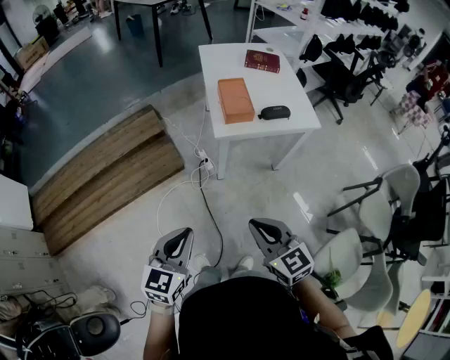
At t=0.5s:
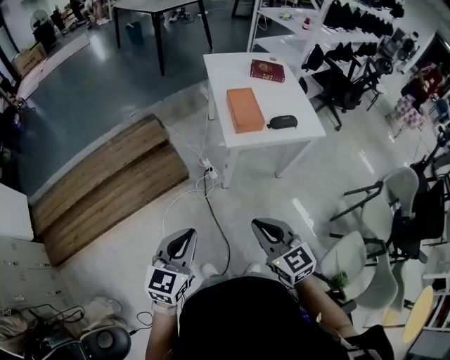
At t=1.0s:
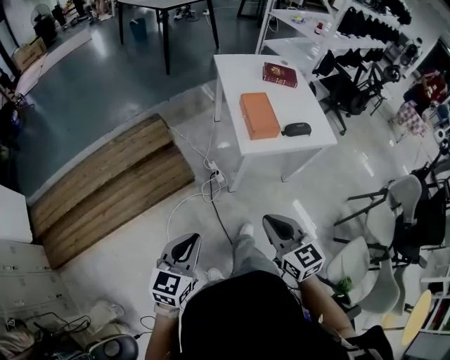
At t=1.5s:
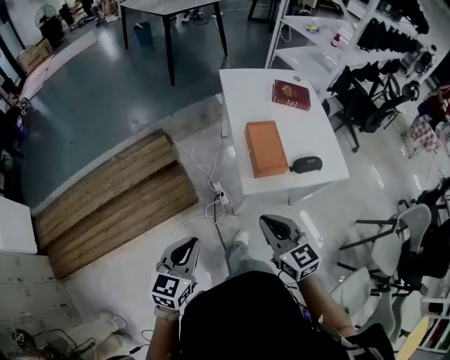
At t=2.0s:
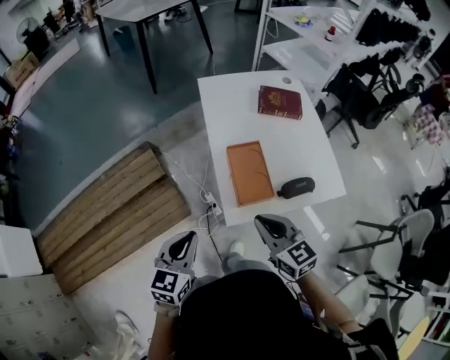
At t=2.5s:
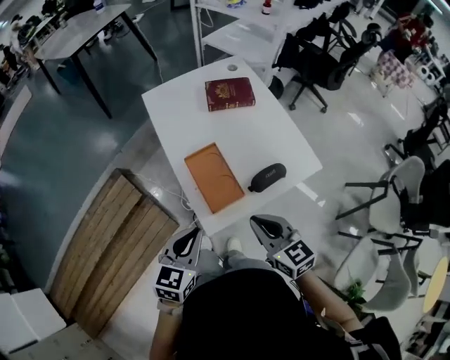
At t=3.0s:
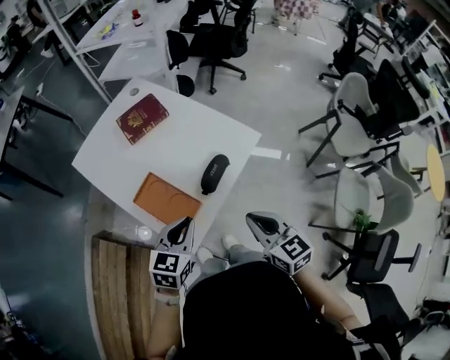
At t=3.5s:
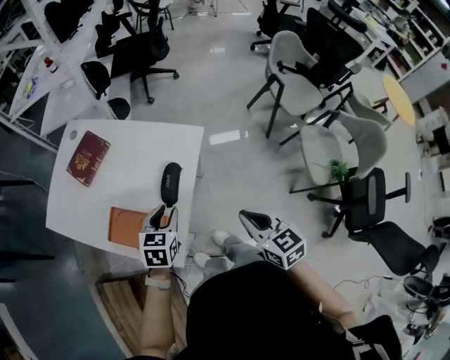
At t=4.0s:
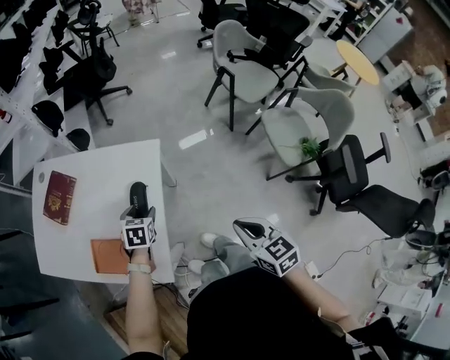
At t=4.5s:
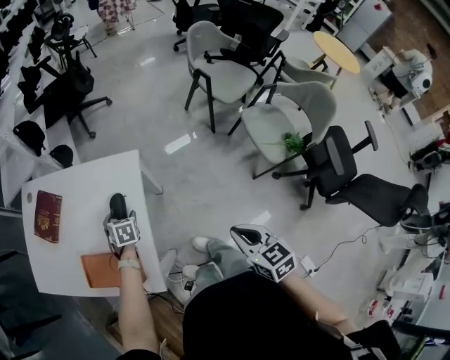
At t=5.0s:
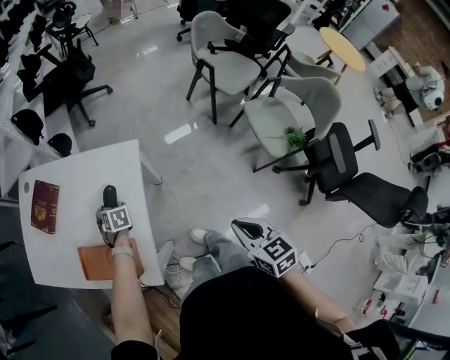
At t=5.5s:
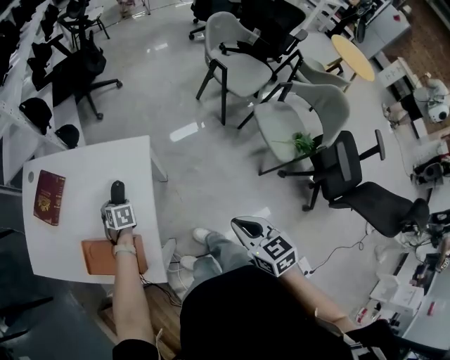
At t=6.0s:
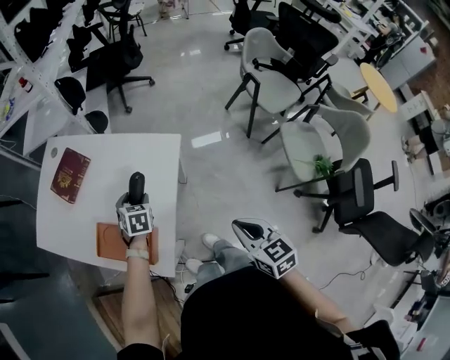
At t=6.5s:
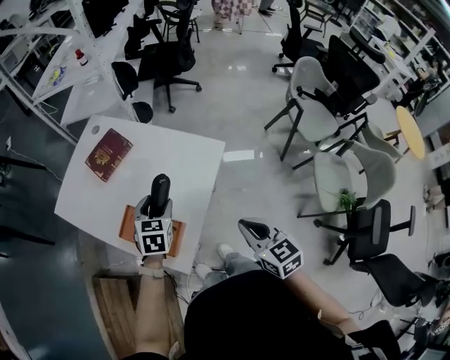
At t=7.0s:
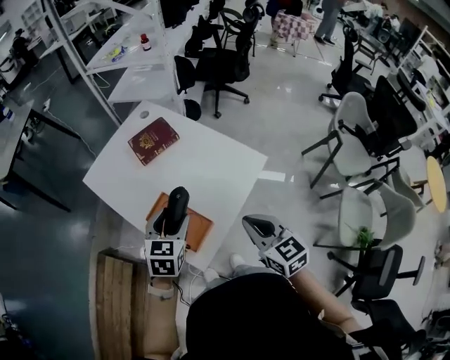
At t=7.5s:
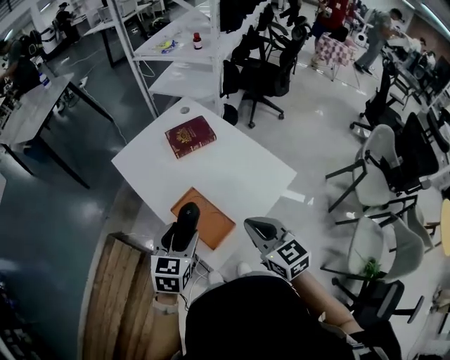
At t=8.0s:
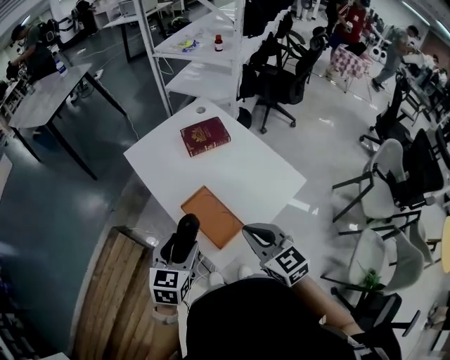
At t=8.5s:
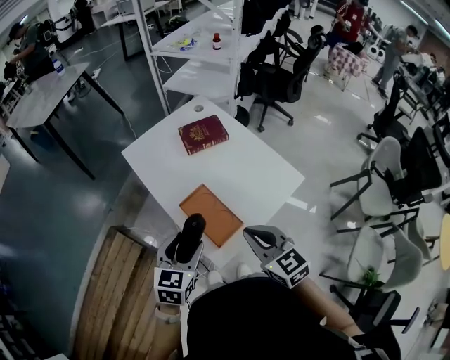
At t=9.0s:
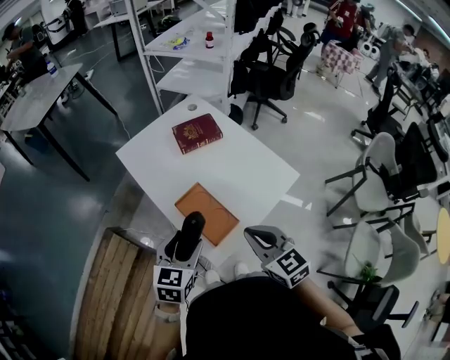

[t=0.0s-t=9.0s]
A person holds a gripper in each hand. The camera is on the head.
t=0.0s to t=2.0s: Both grippers are carried forward, some 40 cm.
t=2.0s to t=4.5s: The right gripper moves about 35 cm, and swivels some 90 degrees, while the left gripper shifts by about 50 cm, angles its fingers downward, by approximately 30 degrees, and opens up.
t=4.5s to t=7.0s: The left gripper travels upward, to the left and backward by approximately 30 cm, and swivels some 30 degrees. The right gripper travels to the left and forward by roughly 30 cm, and rotates approximately 40 degrees.
t=7.0s to t=9.0s: The right gripper is displaced to the left by about 10 cm. Meanwhile the left gripper moves to the left and backward, some 15 cm.

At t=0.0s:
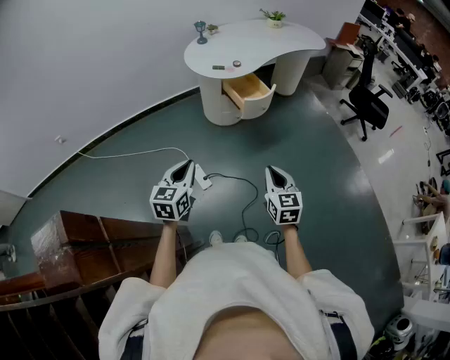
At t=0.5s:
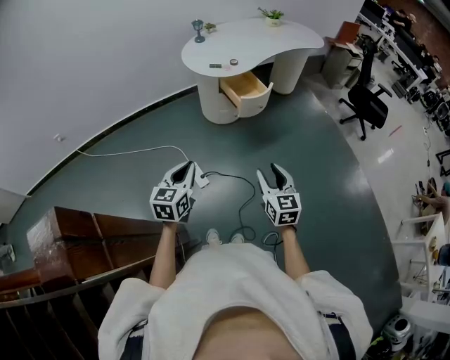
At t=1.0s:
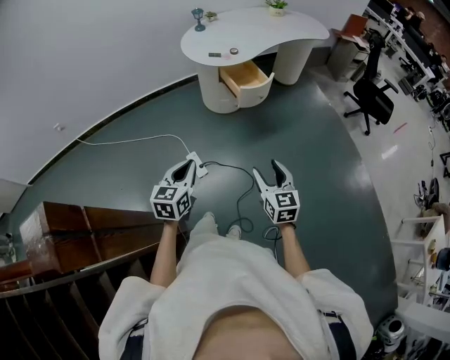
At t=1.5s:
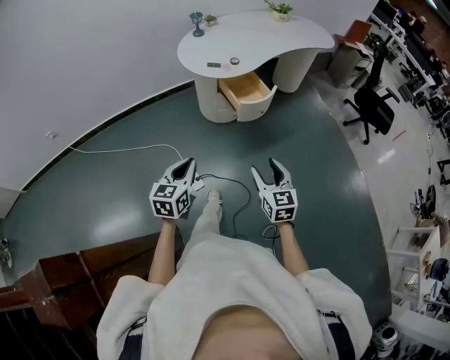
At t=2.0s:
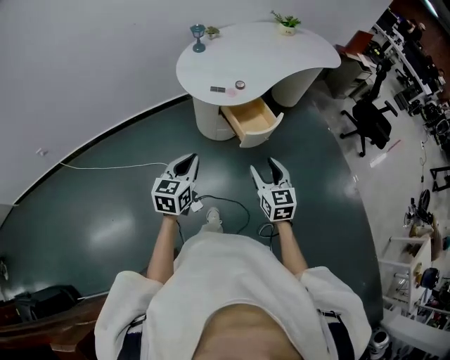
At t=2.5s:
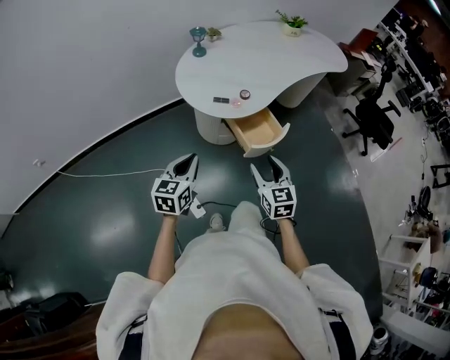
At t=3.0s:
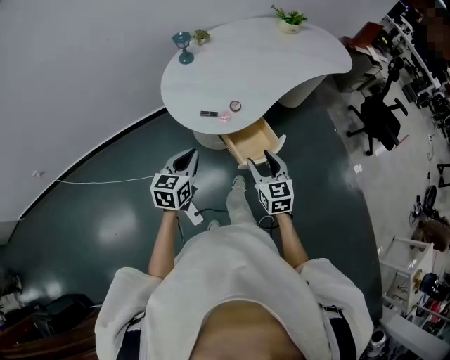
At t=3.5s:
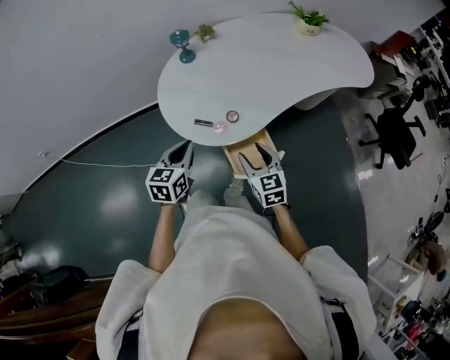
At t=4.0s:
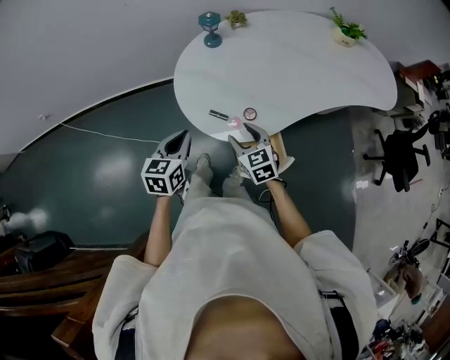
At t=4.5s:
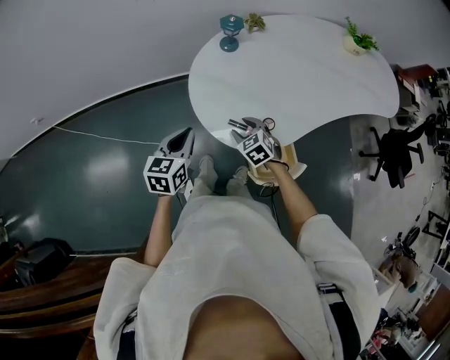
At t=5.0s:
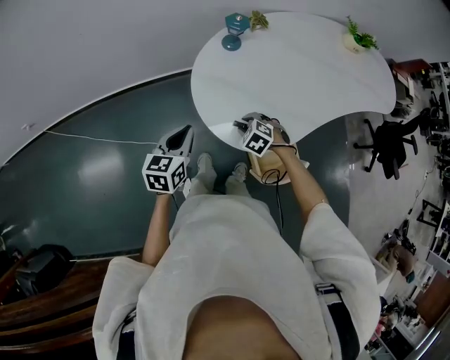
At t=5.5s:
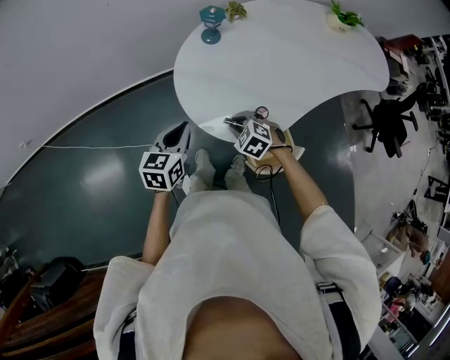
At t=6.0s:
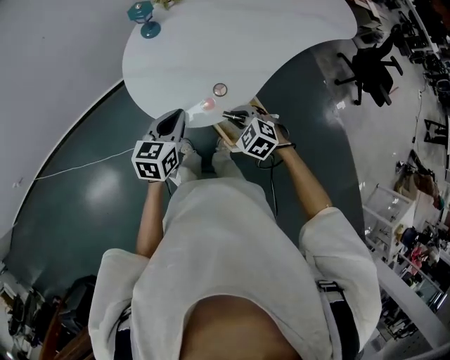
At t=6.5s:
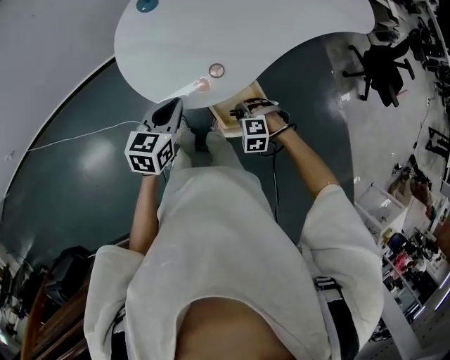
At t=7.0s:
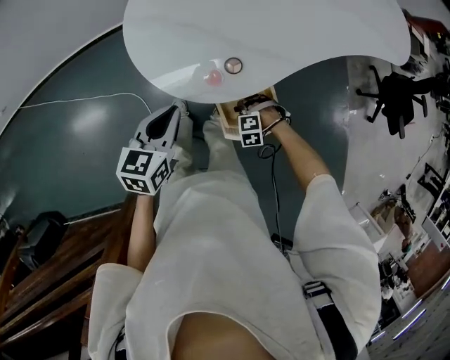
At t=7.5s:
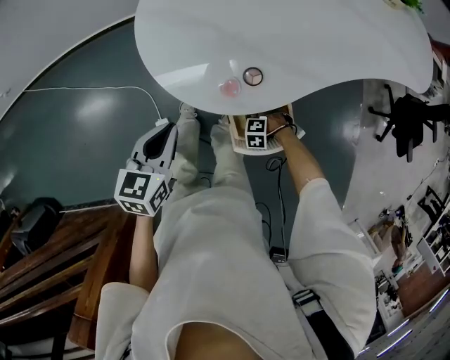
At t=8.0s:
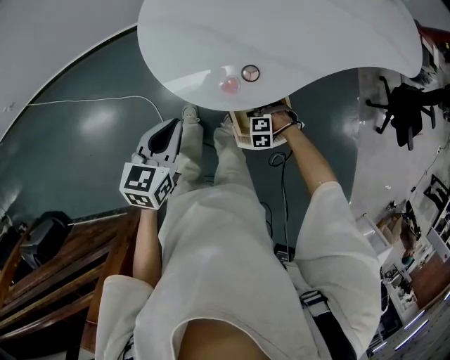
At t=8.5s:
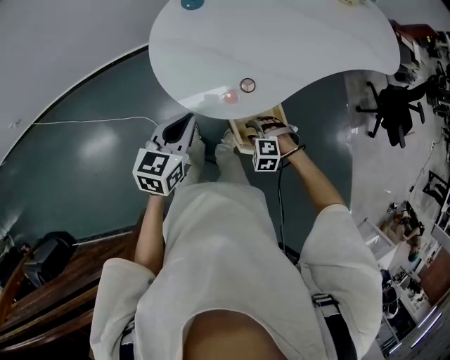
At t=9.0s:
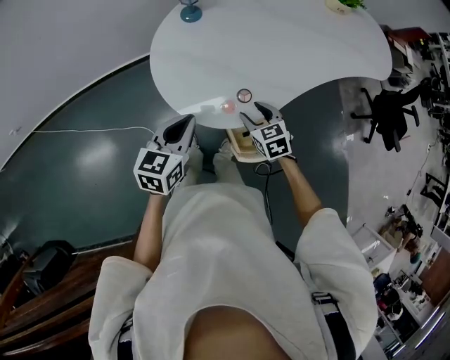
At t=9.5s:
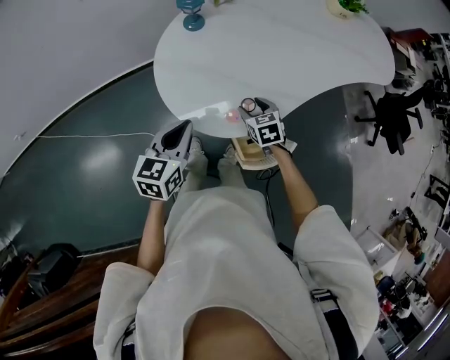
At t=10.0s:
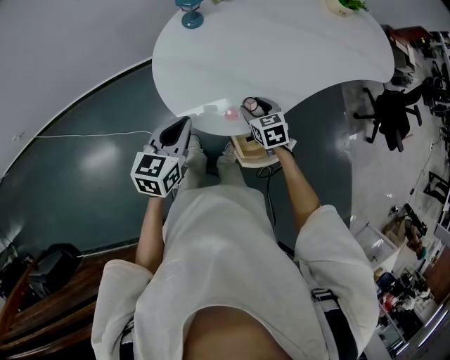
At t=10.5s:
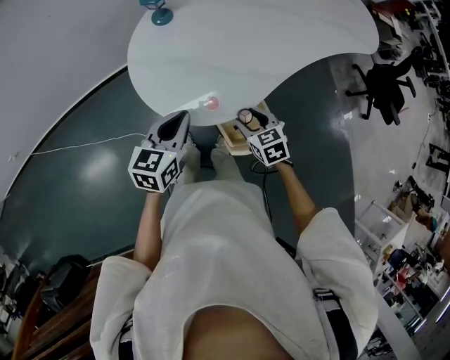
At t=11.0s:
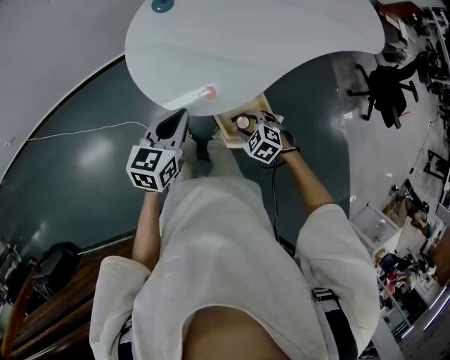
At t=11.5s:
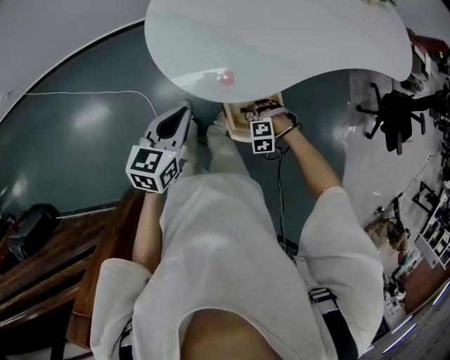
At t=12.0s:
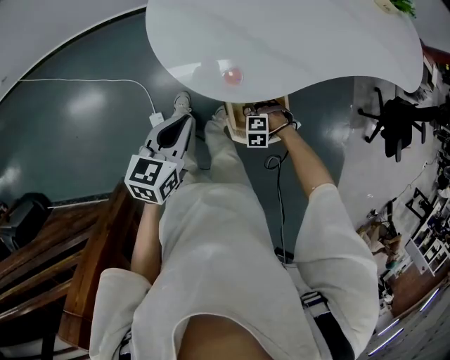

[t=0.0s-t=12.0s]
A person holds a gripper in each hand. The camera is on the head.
t=0.0s to t=2.0s: Both grippers move forward, some 35 cm. The right gripper opens.
t=2.0s to t=4.0s: The right gripper shifts by approximately 40 cm, and turns by some 30 degrees. Meanwhile the left gripper ends up about 35 cm from where it was, and rotates some 20 degrees.
t=4.0s to t=6.0s: The left gripper is displaced forward by some 5 cm, reaches some 10 cm to the left, then returns, and rotates some 20 degrees. The right gripper goes approximately 5 cm downward, travels to the left and back again, about 10 cm each way, changes its angle by approximately 30 degrees, and closes its fingers.
t=6.0s to t=8.0s: The left gripper shifts by roughly 10 cm. The right gripper moves downward, about 25 cm, and rotates around the line of its fingers by roughly 40 degrees, counterclockwise from behind.
t=8.0s to t=10.0s: The right gripper shifts approximately 20 cm upward, and rotates around the line of its fingers by roughly 70 degrees, clockwise from behind. Meanwhile the left gripper travels upward by approximately 10 cm.
t=10.0s to t=12.0s: The left gripper ends up approximately 15 cm from where it was. The right gripper goes approximately 20 cm downward, and twists about 80 degrees counterclockwise, seen from behind.

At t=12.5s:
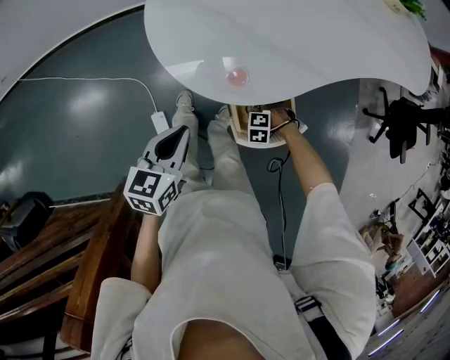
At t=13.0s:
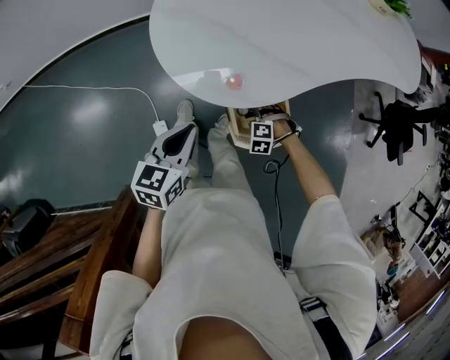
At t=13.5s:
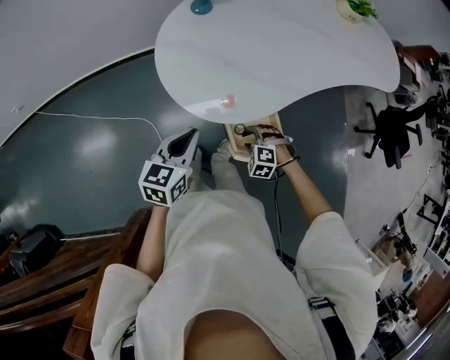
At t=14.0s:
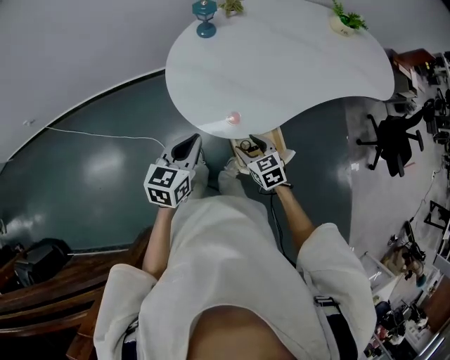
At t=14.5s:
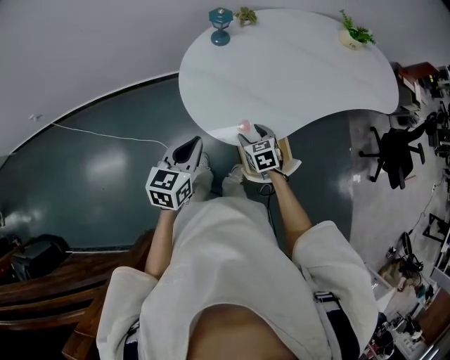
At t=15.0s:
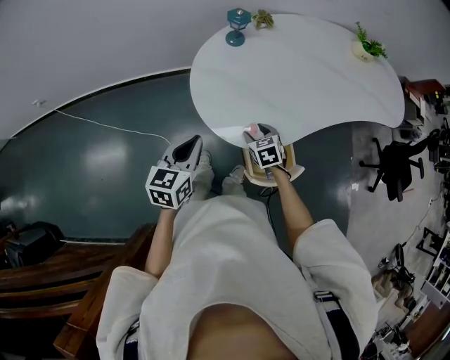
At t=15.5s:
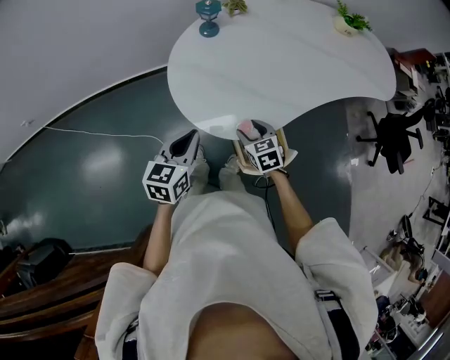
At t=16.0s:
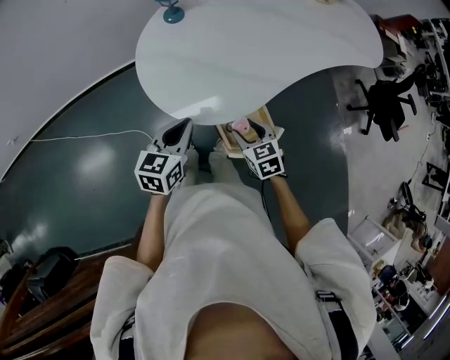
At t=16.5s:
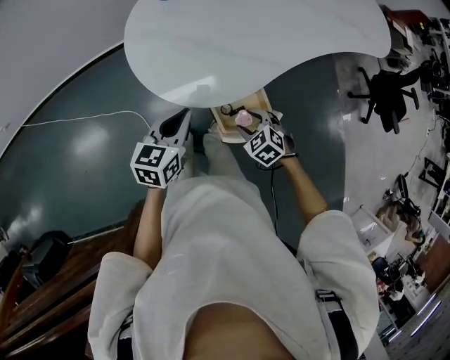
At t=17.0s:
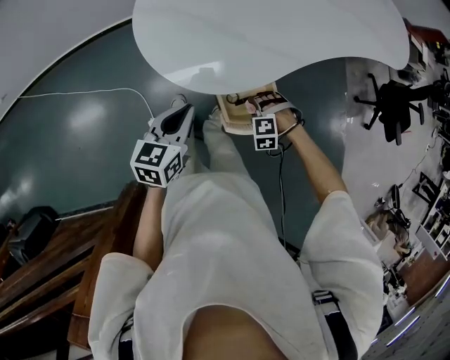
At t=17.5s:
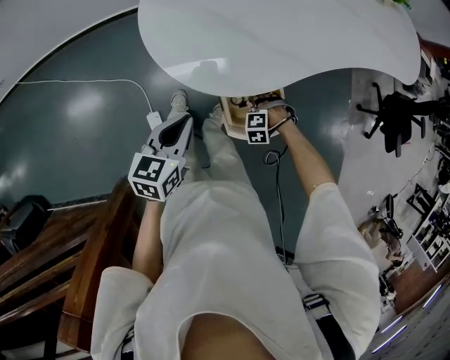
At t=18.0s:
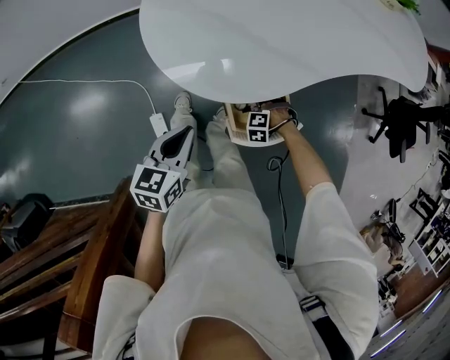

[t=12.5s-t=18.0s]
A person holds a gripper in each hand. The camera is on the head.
t=12.5s to t=14.5s: The left gripper moves upward, approximately 15 cm. The right gripper goes some 25 cm upward, and twists approximately 70 degrees clockwise, seen from behind.
t=14.5s to t=16.0s: The right gripper heads backward and to the right, covering about 10 cm, while the left gripper goes approximately 5 cm to the right.
t=16.0s to t=18.0s: The right gripper is displaced downward by approximately 30 cm, and twists approximately 80 degrees counterclockwise, seen from behind. Meanwhile the left gripper goes some 10 cm downward.
